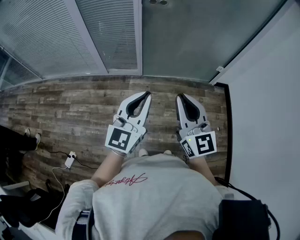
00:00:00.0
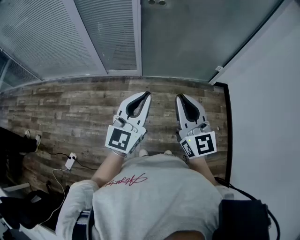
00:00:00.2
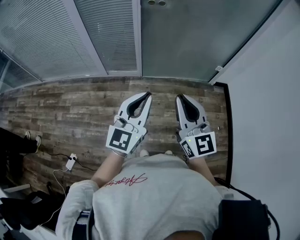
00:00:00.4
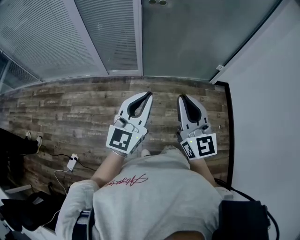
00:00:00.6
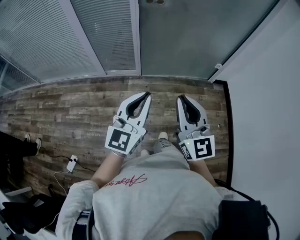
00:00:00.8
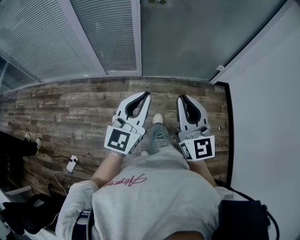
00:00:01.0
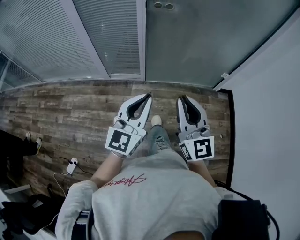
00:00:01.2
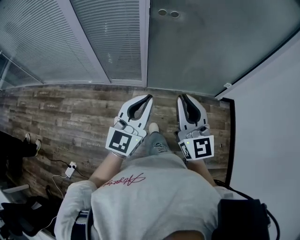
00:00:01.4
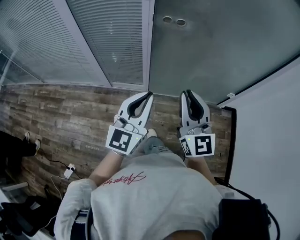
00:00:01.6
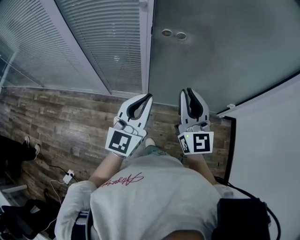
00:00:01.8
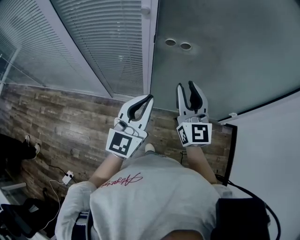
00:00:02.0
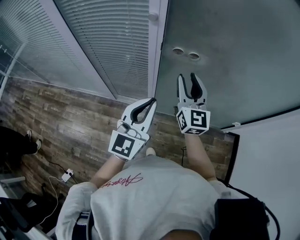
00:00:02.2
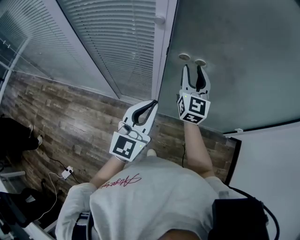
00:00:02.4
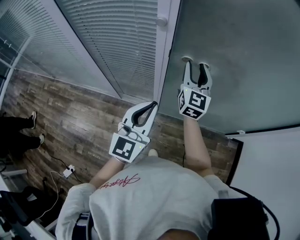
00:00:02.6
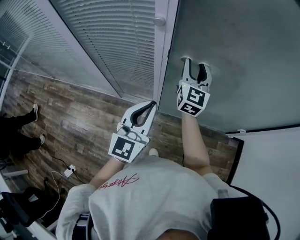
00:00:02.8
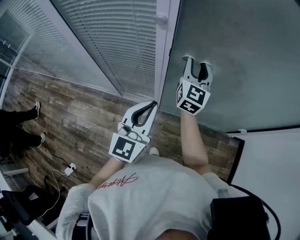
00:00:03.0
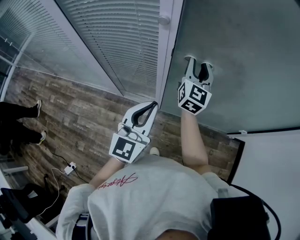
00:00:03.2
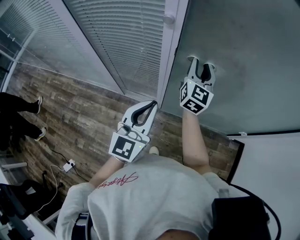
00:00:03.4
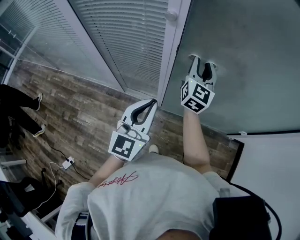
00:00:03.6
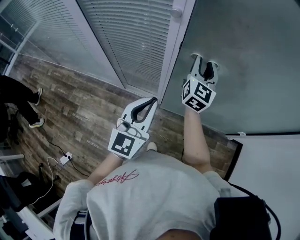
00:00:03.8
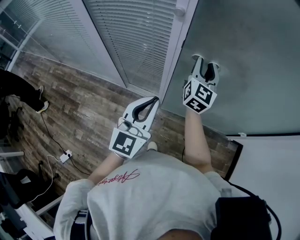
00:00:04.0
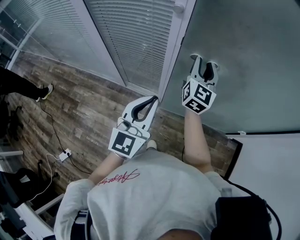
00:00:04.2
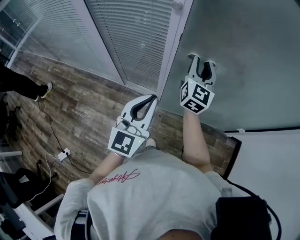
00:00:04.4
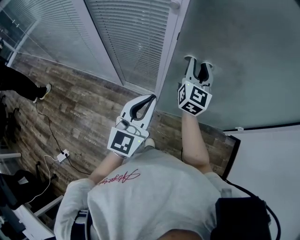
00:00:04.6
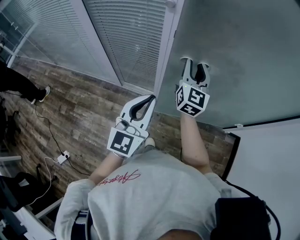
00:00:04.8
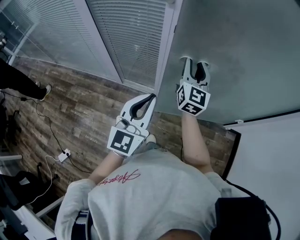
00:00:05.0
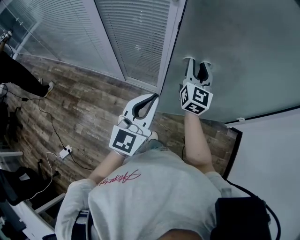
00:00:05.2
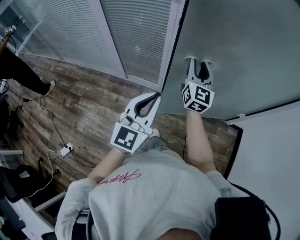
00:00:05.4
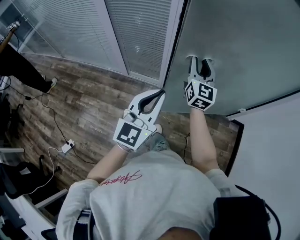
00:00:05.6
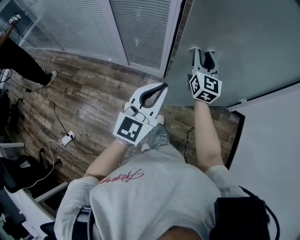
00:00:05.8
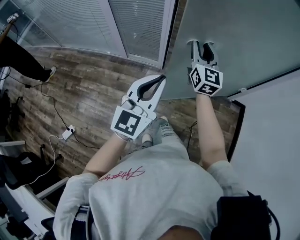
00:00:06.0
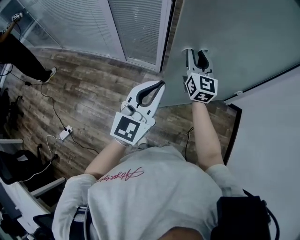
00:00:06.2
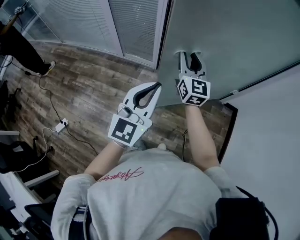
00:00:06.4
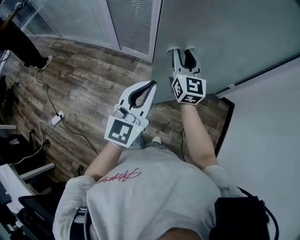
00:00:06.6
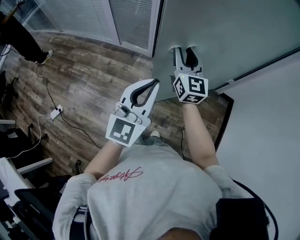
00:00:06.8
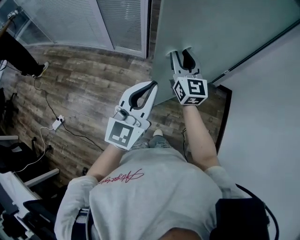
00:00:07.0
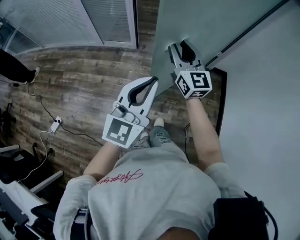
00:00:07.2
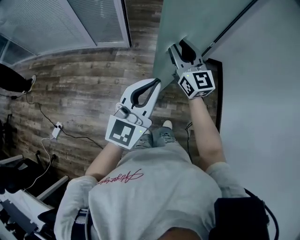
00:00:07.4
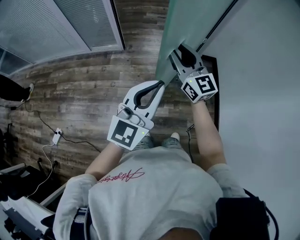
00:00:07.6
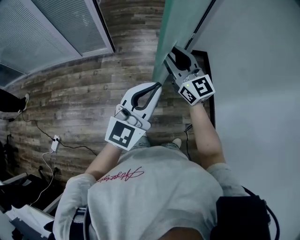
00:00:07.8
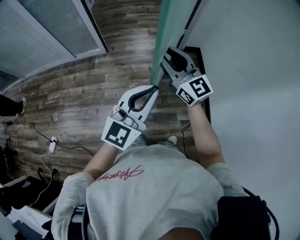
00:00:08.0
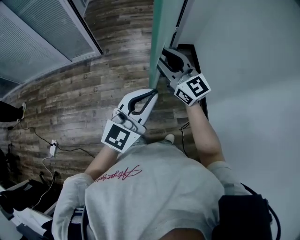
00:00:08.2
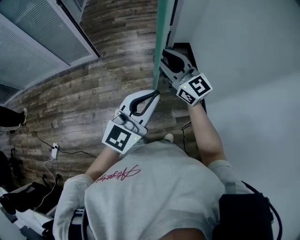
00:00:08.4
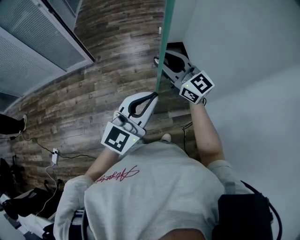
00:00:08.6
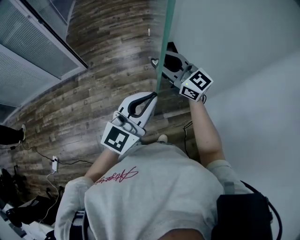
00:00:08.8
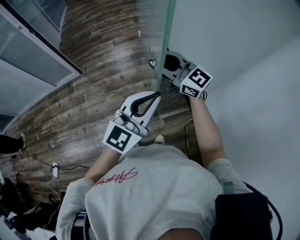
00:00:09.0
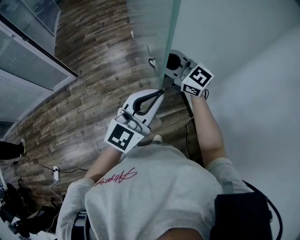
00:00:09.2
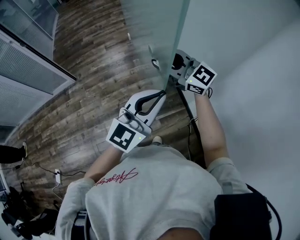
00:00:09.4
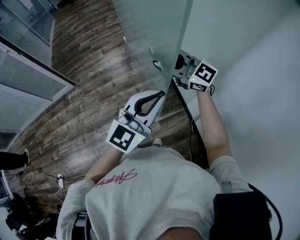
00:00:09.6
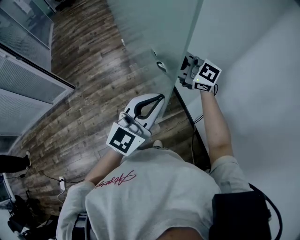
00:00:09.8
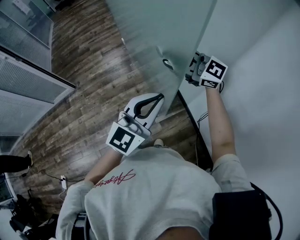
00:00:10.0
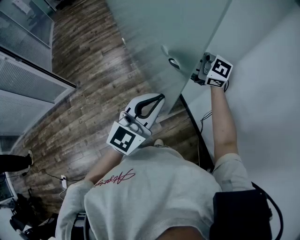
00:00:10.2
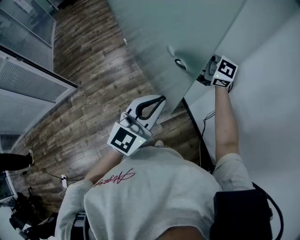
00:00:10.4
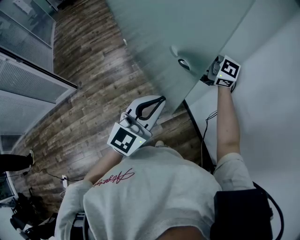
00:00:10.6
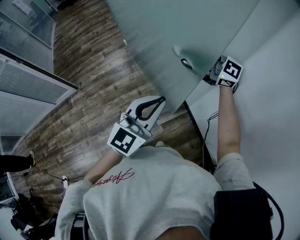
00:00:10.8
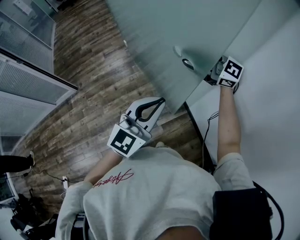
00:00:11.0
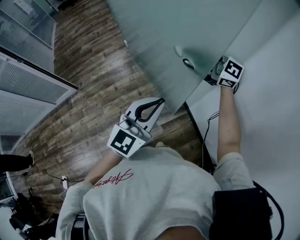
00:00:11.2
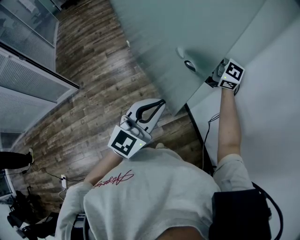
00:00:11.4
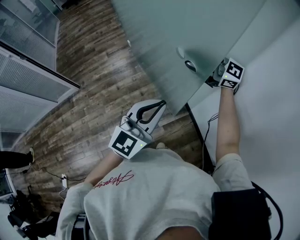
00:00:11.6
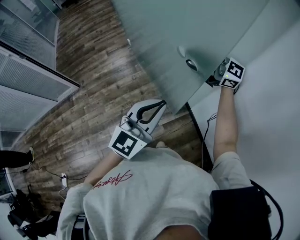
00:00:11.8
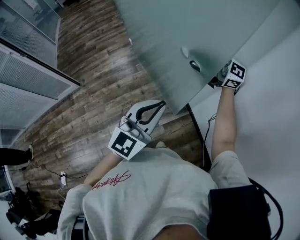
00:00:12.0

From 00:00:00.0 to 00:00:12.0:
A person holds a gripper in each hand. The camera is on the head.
From 00:00:00.0 to 00:00:01.6: The two grippers go approximately 25 cm forward.
From 00:00:01.6 to 00:00:03.0: The left gripper goes roughly 20 cm forward. The right gripper goes approximately 40 cm forward, and opens up.
From 00:00:03.0 to 00:00:04.4: The grippers both shift backward by roughly 5 cm.
From 00:00:04.4 to 00:00:06.0: The grippers both shift backward by approximately 25 cm.
From 00:00:06.0 to 00:00:07.6: The two grippers go some 35 cm backward and to the right.
From 00:00:07.6 to 00:00:09.0: The grippers both shift to the right by about 30 cm. The left gripper changes its angle by about 30 degrees.
From 00:00:09.0 to 00:00:10.4: The left gripper is displaced to the right by approximately 15 cm. Meanwhile the right gripper is displaced to the right by about 20 cm.
From 00:00:10.4 to 00:00:12.0: There are only small adjustments of the grippers.

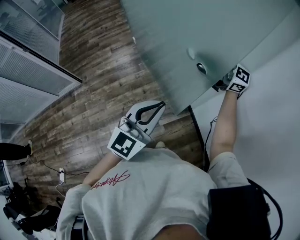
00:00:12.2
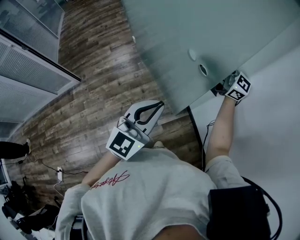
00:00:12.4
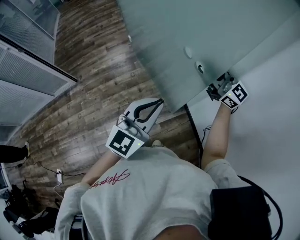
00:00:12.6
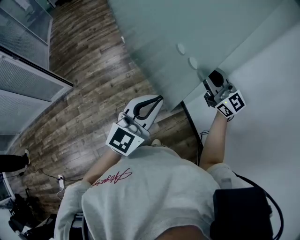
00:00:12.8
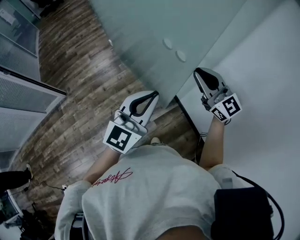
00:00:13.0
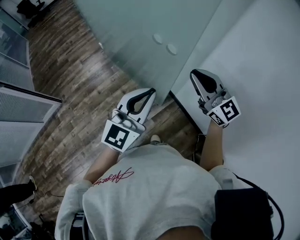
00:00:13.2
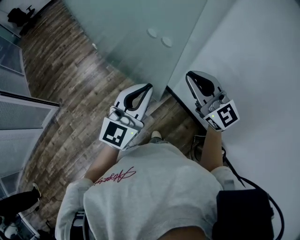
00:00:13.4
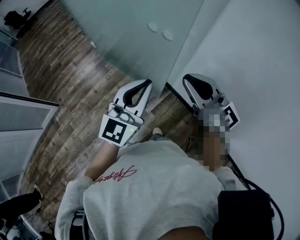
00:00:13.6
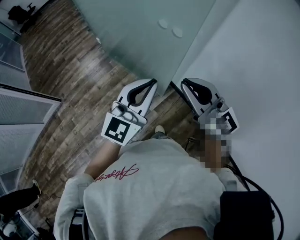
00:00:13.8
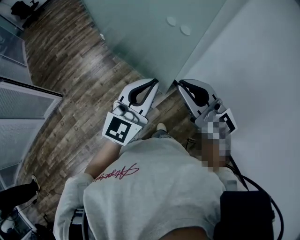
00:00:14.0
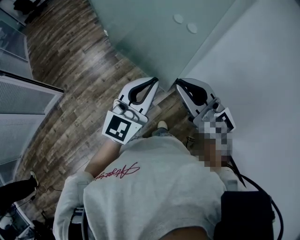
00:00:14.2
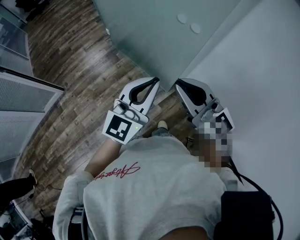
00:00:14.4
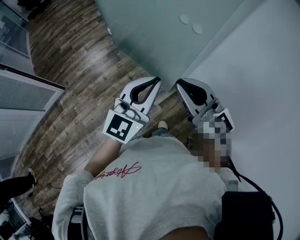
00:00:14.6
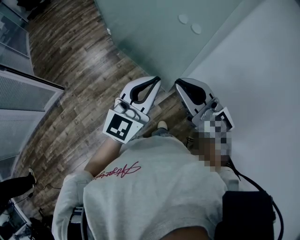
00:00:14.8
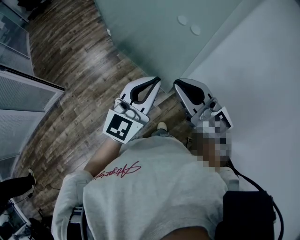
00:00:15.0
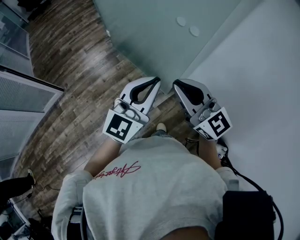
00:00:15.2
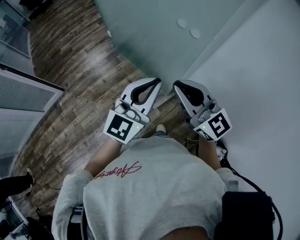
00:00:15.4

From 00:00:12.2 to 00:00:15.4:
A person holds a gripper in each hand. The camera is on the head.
From 00:00:12.2 to 00:00:13.8: The right gripper ends up roughly 25 cm from where it was, rotates roughly 50 degrees, and closes its fingers.
From 00:00:13.8 to 00:00:15.4: The right gripper moves to the left, some 5 cm.

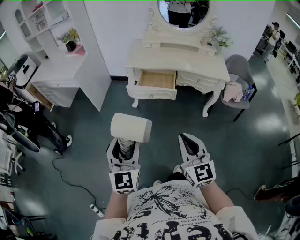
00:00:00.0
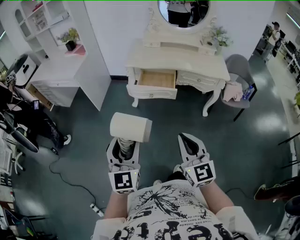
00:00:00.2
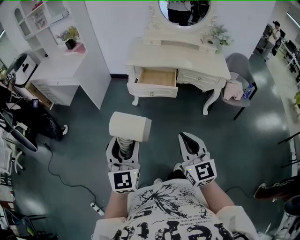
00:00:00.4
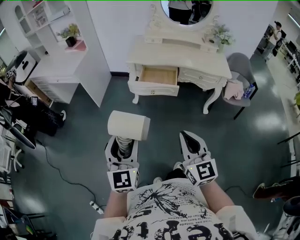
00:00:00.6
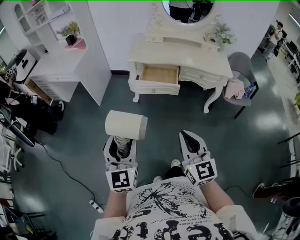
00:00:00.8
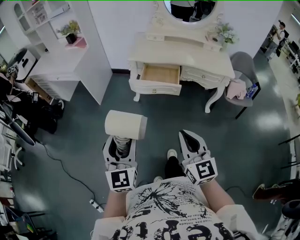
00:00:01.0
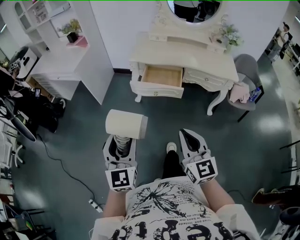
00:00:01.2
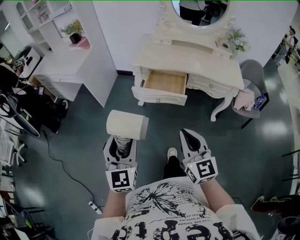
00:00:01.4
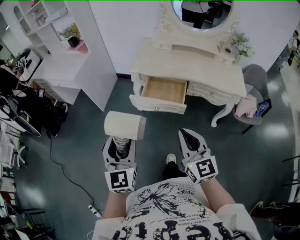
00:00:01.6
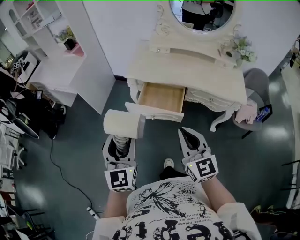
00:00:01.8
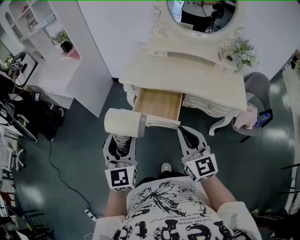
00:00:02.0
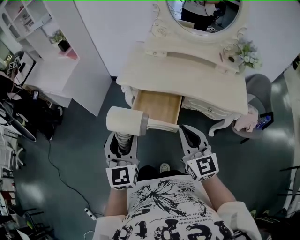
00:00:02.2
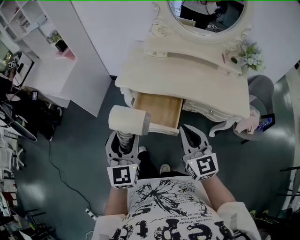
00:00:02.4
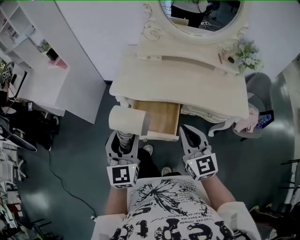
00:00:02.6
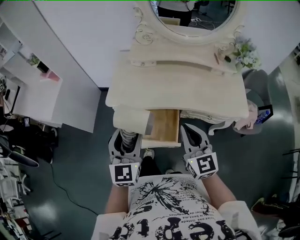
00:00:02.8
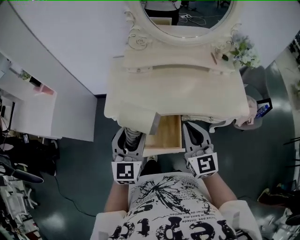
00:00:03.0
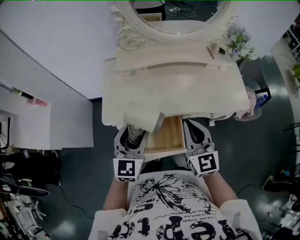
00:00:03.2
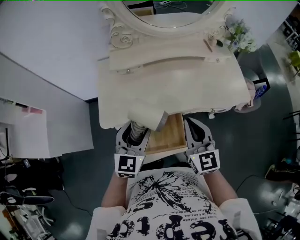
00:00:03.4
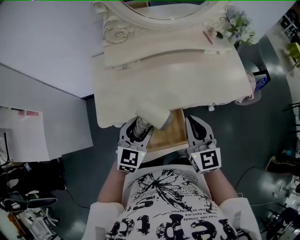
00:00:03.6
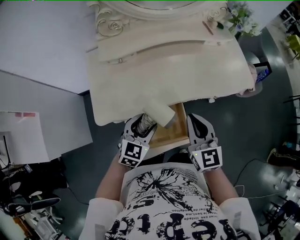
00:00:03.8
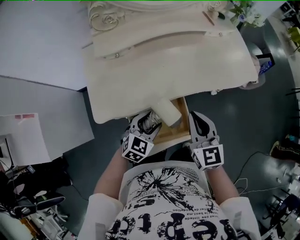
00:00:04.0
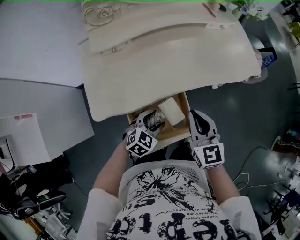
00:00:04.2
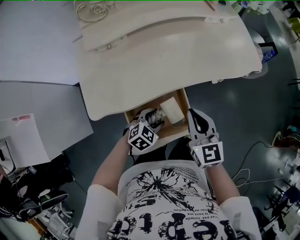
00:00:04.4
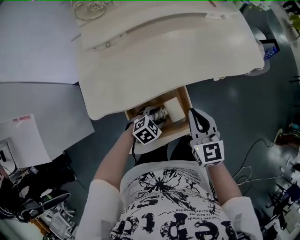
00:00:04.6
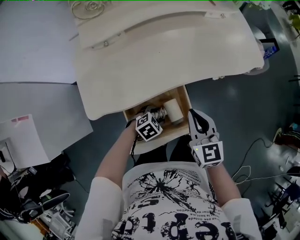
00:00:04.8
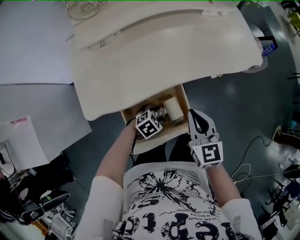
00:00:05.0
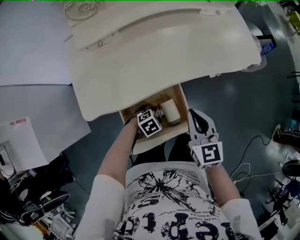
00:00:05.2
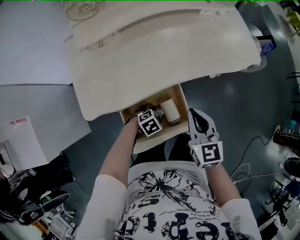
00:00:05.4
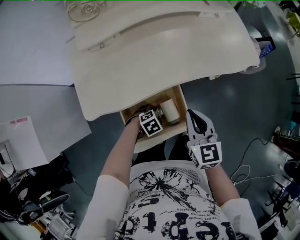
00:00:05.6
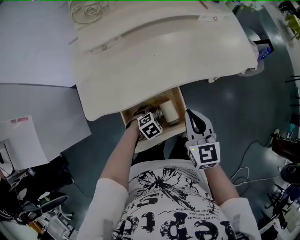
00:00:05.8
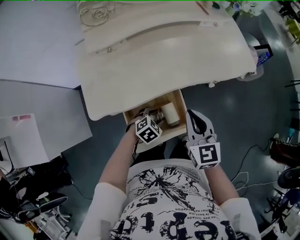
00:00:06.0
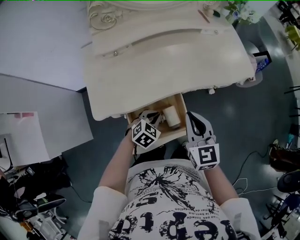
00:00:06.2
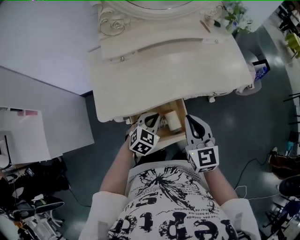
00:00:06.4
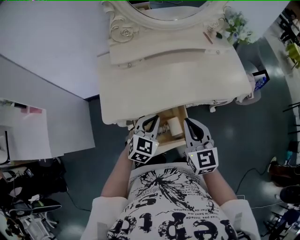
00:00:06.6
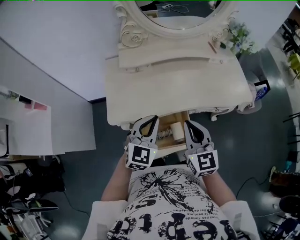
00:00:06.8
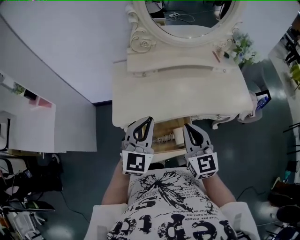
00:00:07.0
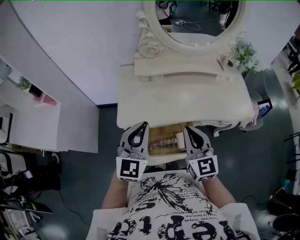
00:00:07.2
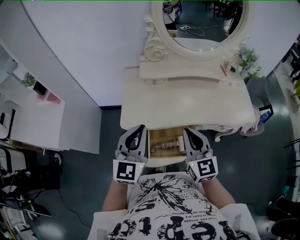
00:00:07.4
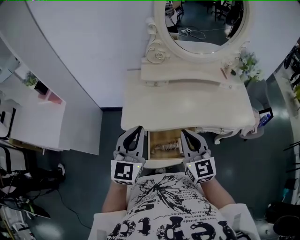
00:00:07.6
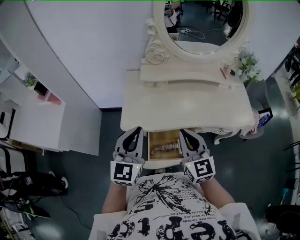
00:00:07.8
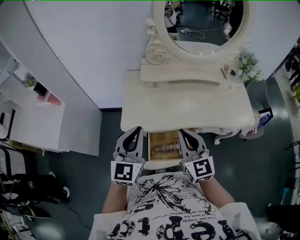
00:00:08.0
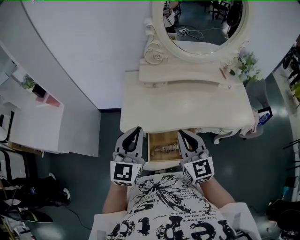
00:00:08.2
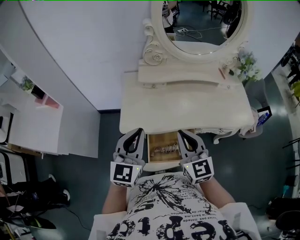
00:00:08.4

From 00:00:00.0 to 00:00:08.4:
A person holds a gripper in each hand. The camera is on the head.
From 00:00:00.0 to 00:00:01.4: The two grippers go approximately 10 cm forward.
From 00:00:01.4 to 00:00:02.8: Both grippers travel together forward and to the right, roughly 40 cm.
From 00:00:02.8 to 00:00:04.2: The left gripper goes approximately 25 cm downward, and angles its fingers downward, by some 40 degrees; the right gripper shifts roughly 10 cm downward, and rotates roughly 30 degrees.
From 00:00:04.2 to 00:00:05.6: The left gripper is displaced downward by roughly 15 cm, and swivels roughly 30 degrees.
From 00:00:05.6 to 00:00:07.0: The right gripper moves upward, about 15 cm, and changes its angle by some 20 degrees. The left gripper shifts roughly 40 cm upward, tilts its fingers about 60 degrees upward, and closes up.
From 00:00:07.0 to 00:00:08.4: Both grippers move to the left, roughly 5 cm.
